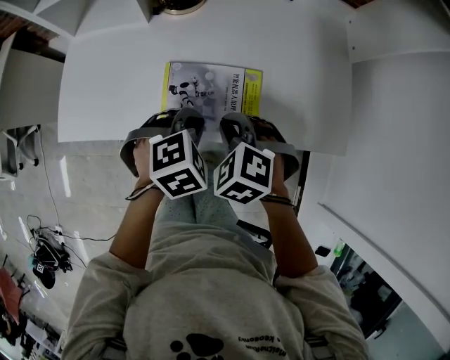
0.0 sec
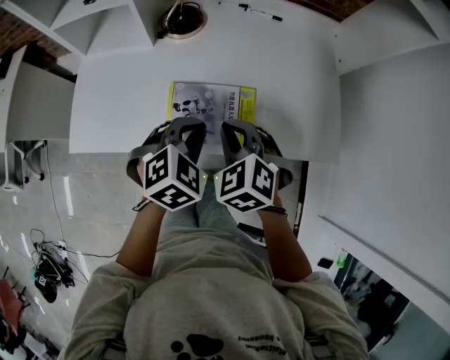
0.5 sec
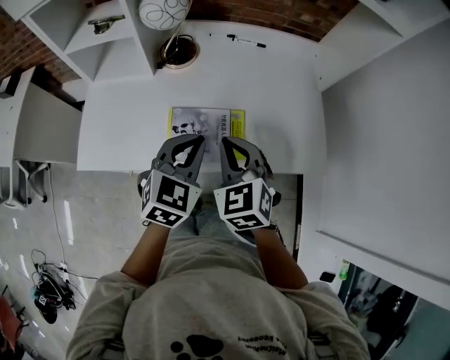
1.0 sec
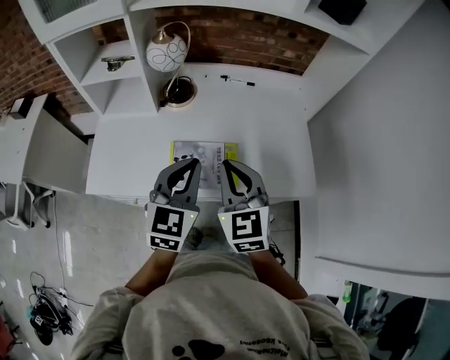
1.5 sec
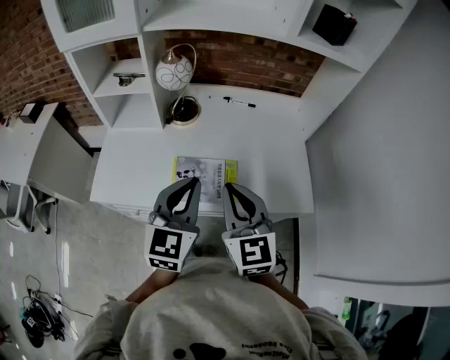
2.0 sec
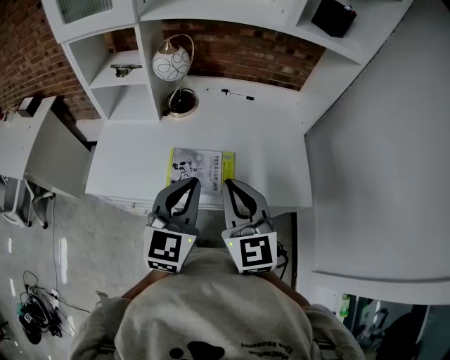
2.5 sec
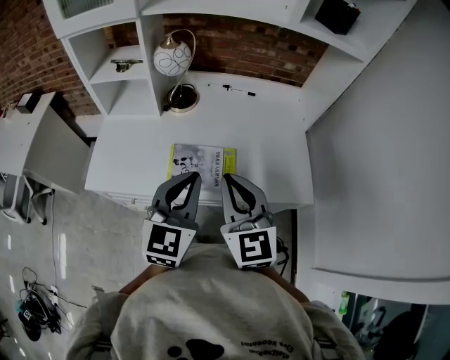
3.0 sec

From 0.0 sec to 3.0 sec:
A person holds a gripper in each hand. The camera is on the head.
From 0.0 sec to 1.5 sec: The two grippers go approximately 20 cm upward. The left gripper tilts its fingers some 50 degrees upward, while the right gripper tilts its fingers approximately 40 degrees upward.
From 1.5 sec to 3.0 sec: Both grippers travel together backward, approximately 5 cm.

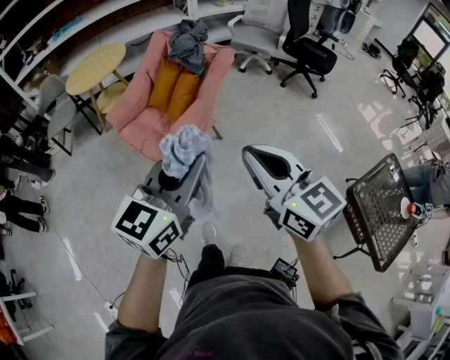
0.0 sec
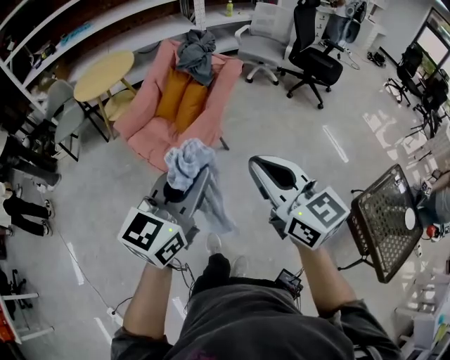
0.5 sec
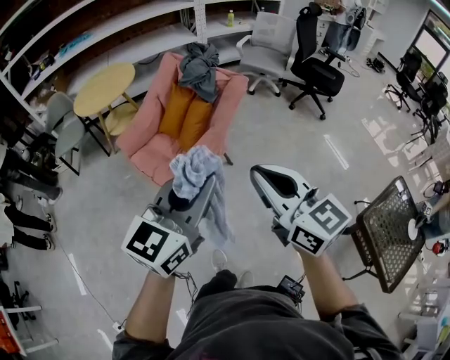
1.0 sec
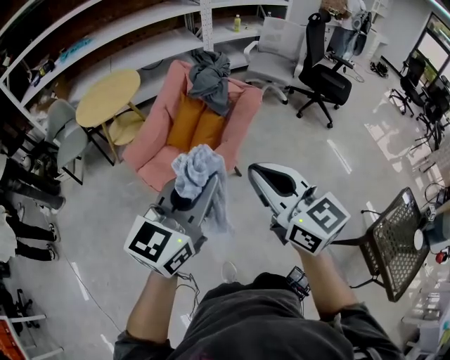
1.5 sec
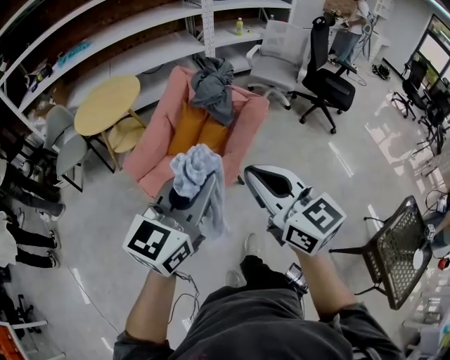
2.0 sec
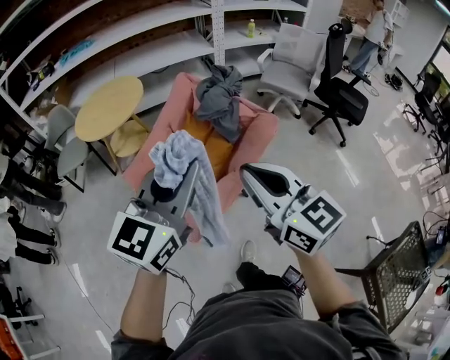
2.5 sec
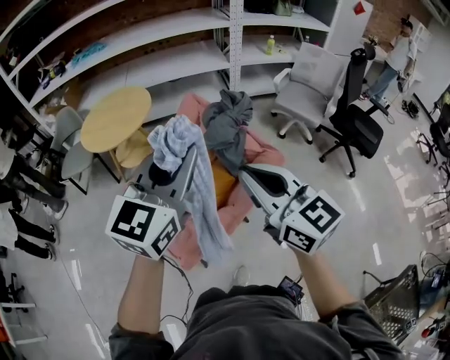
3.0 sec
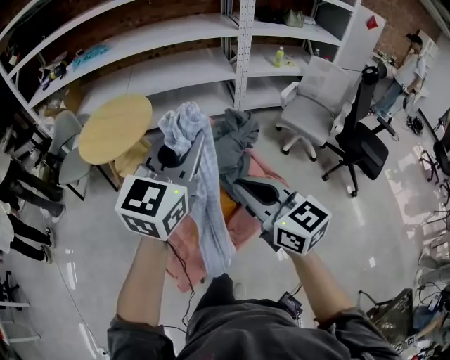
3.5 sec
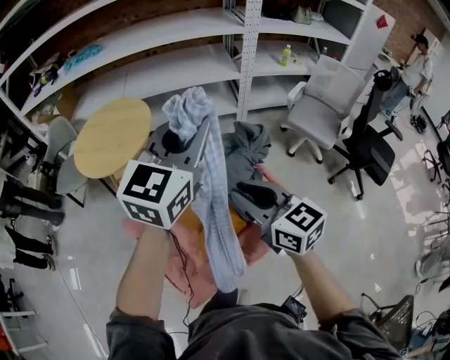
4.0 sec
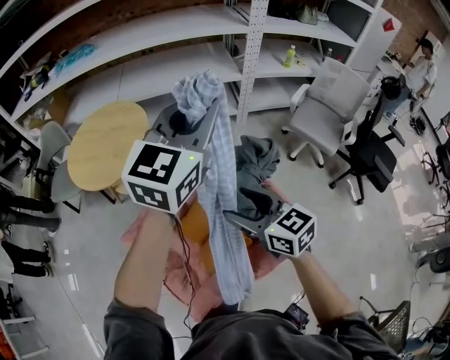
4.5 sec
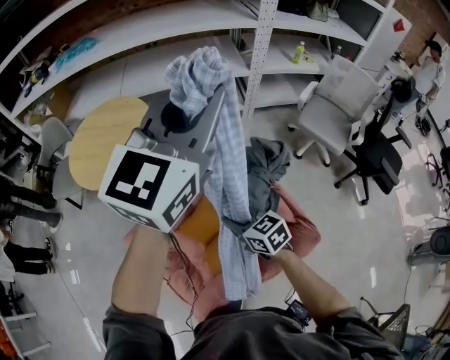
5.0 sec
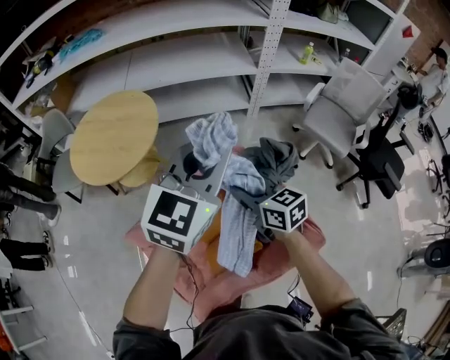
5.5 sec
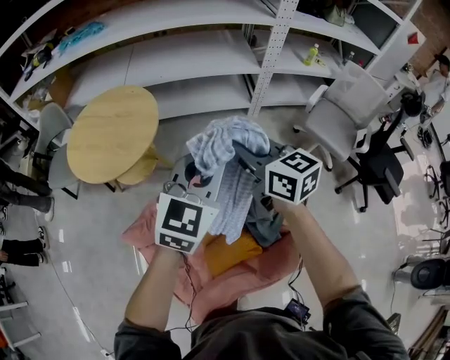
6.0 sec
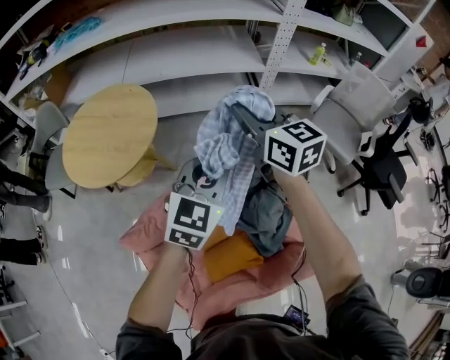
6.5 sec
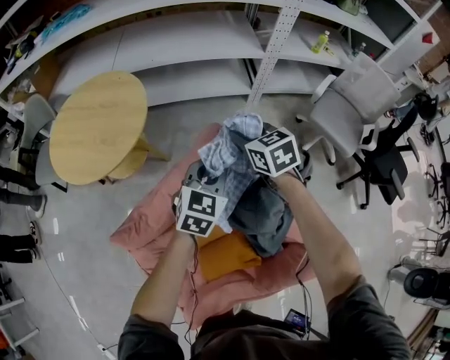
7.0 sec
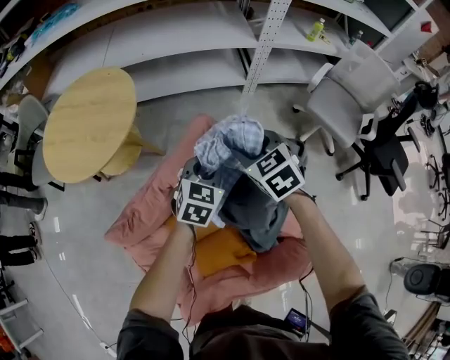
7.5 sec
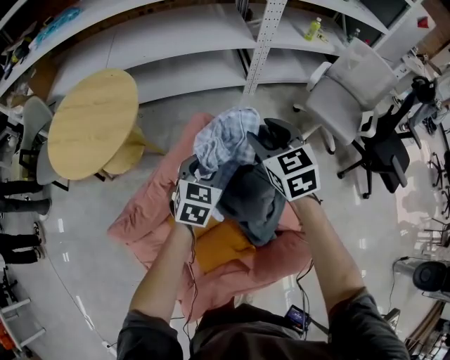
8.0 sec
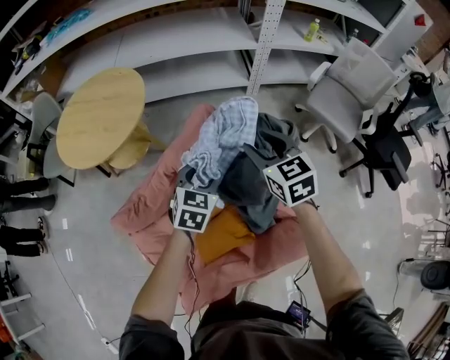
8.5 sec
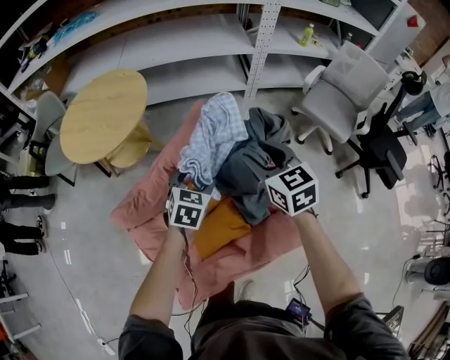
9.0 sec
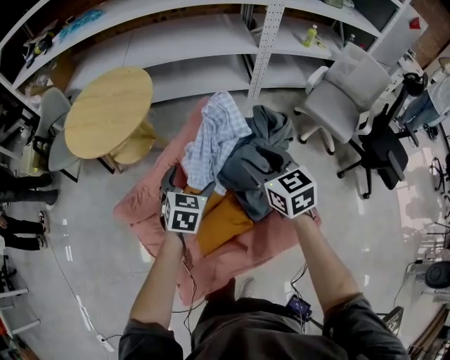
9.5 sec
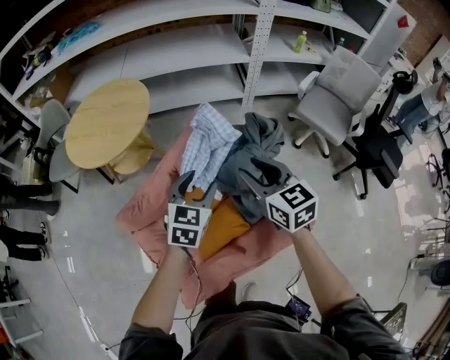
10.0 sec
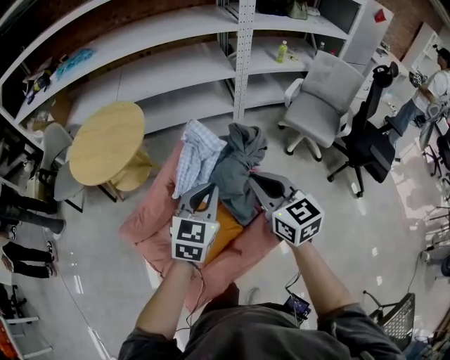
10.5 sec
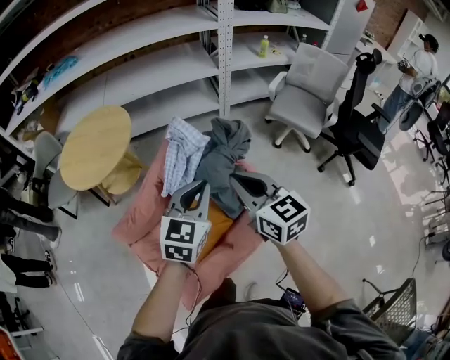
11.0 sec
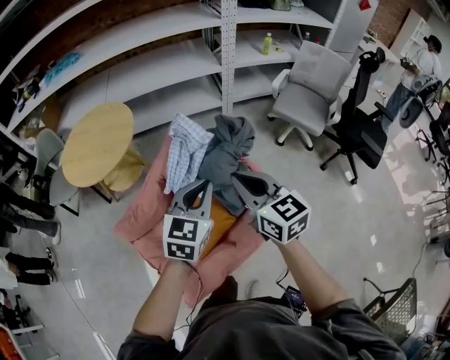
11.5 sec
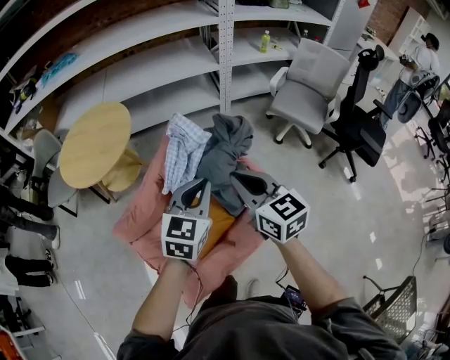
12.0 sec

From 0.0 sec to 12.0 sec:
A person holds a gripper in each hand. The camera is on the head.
From 0.0 sec to 2.0 sec: The grippers both shift forward and to the left by approximately 25 cm.
From 2.0 sec to 4.0 sec: Both grippers are carried forward, about 50 cm. The left gripper changes its angle by roughly 20 degrees; the right gripper changes its angle by about 20 degrees.
From 4.0 sec to 6.0 sec: The left gripper is displaced forward and downward by some 20 cm. The right gripper travels forward by about 30 cm, and opens, then closes once more.
From 6.0 sec to 8.0 sec: The left gripper goes some 25 cm downward, and changes its angle by roughly 20 degrees; the right gripper shifts some 20 cm downward, to the right and forward, changes its angle by about 30 degrees, and opens.
From 8.0 sec to 10.0 sec: The right gripper shifts about 20 cm backward; the left gripper travels backward and upward by some 20 cm, and opens, then closes once more.
From 10.0 sec to 12.0 sec: The right gripper heads backward and upward, covering roughly 10 cm, and closes up. The left gripper heads upward, to the right and backward, covering approximately 15 cm, and closes up.

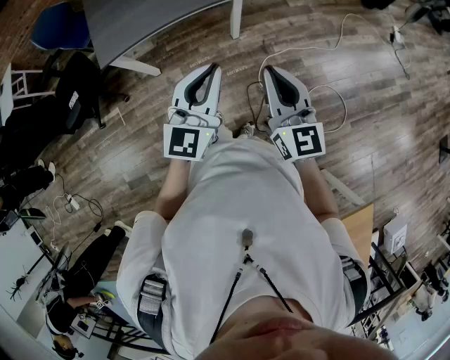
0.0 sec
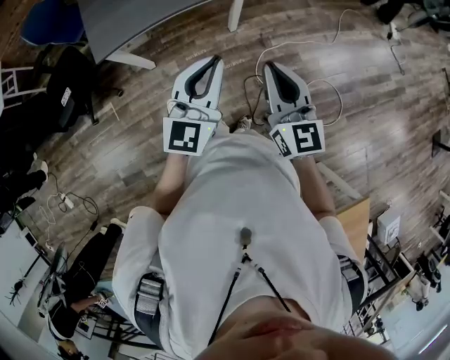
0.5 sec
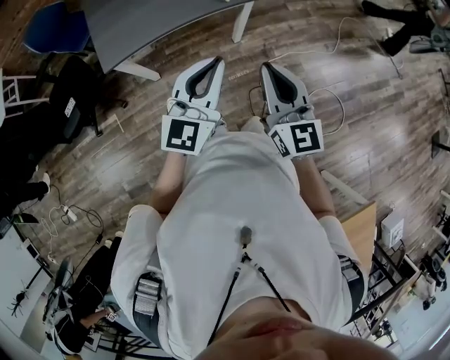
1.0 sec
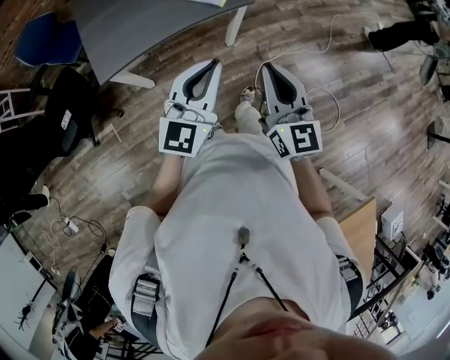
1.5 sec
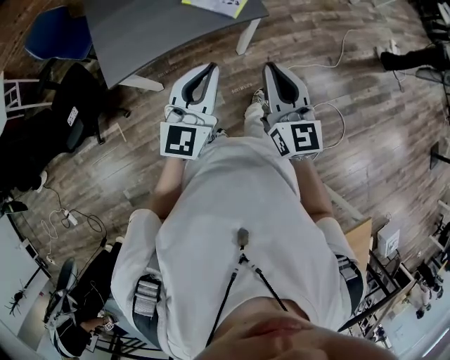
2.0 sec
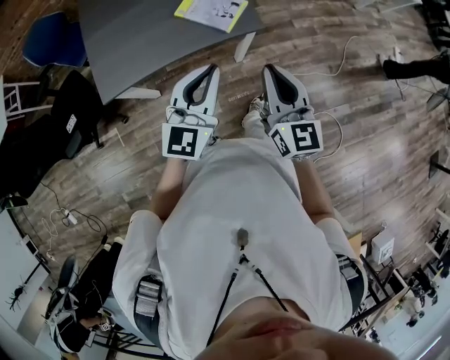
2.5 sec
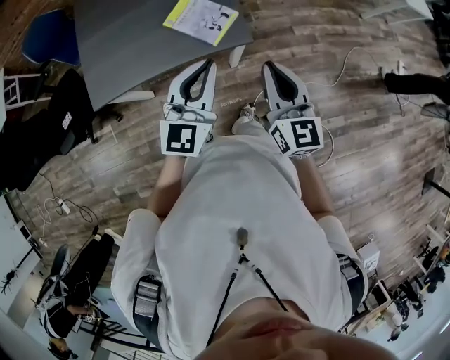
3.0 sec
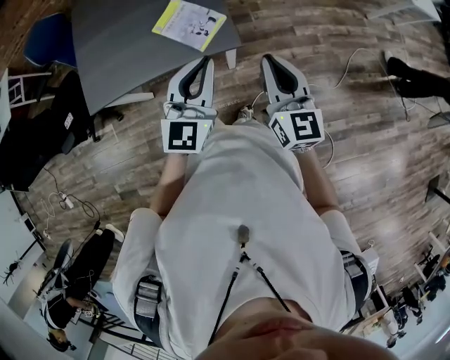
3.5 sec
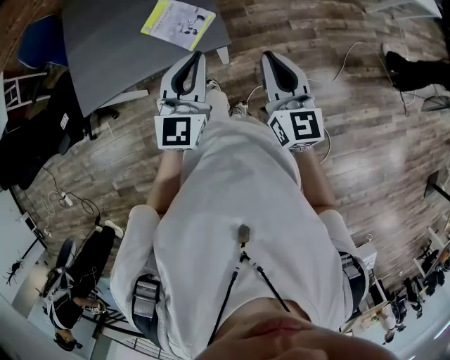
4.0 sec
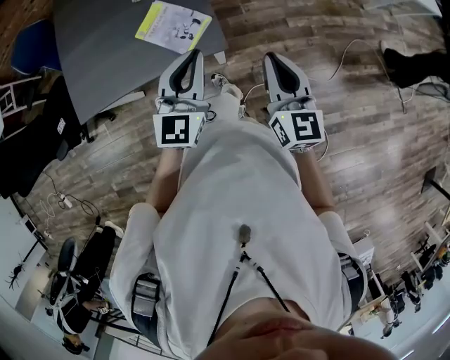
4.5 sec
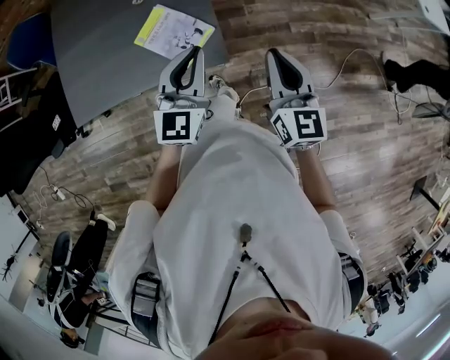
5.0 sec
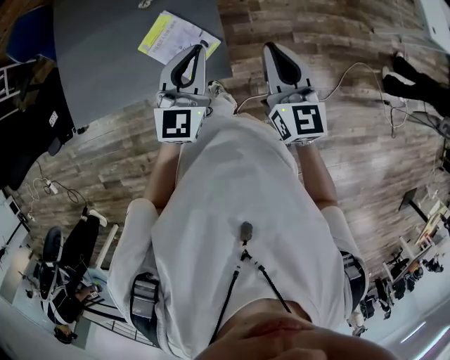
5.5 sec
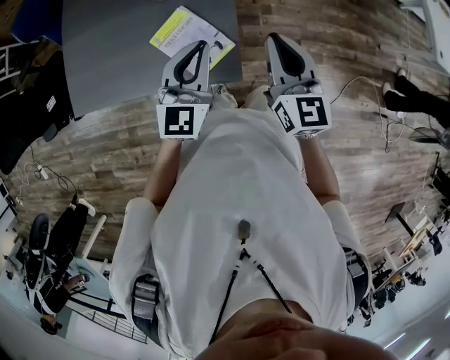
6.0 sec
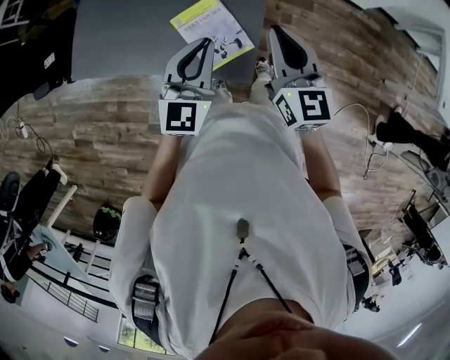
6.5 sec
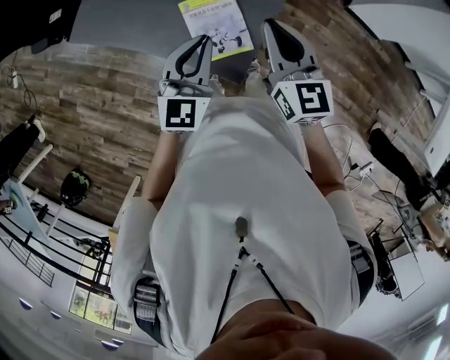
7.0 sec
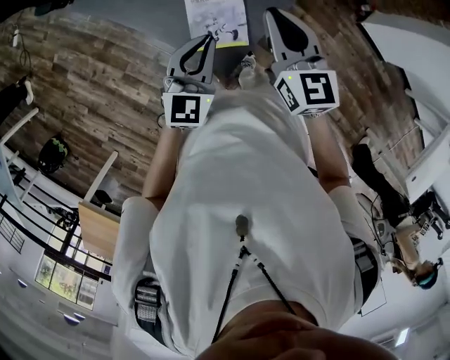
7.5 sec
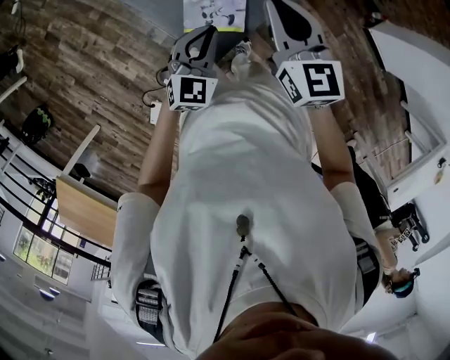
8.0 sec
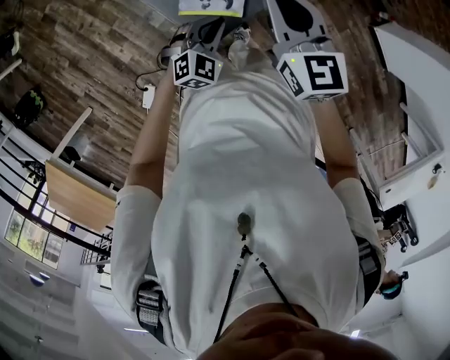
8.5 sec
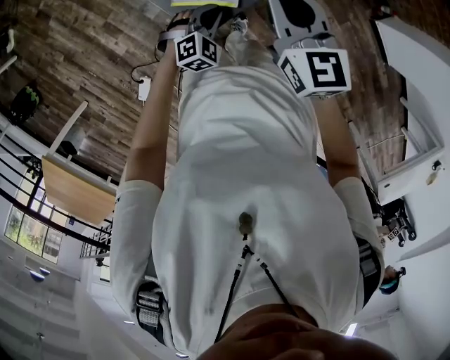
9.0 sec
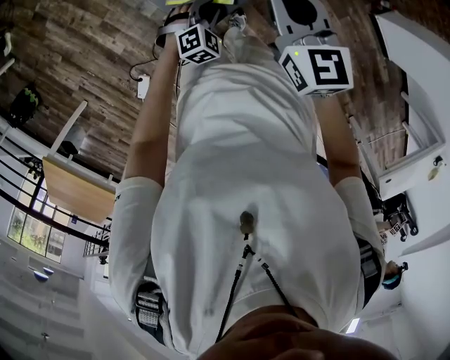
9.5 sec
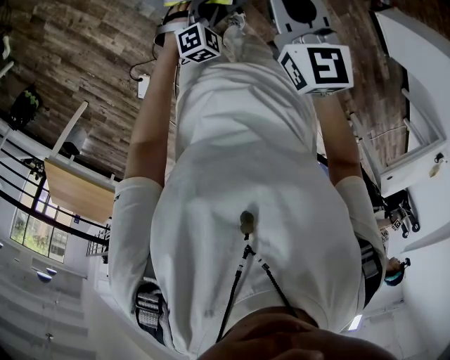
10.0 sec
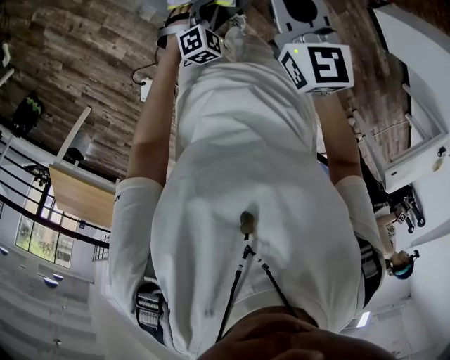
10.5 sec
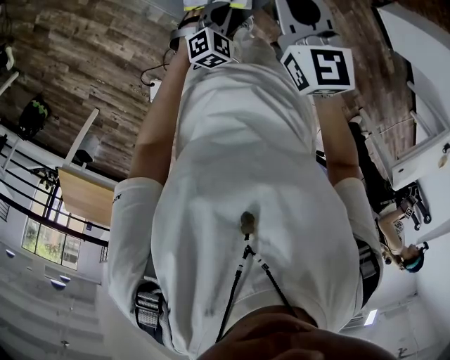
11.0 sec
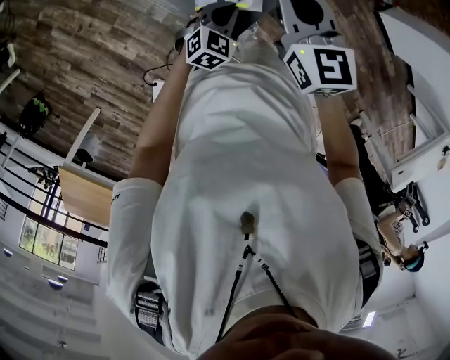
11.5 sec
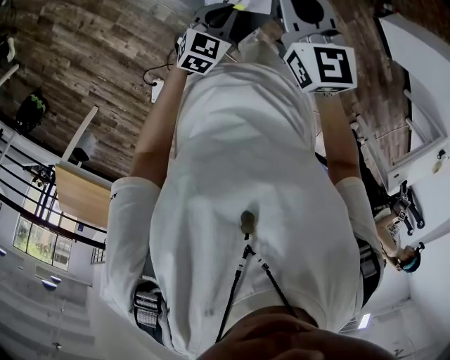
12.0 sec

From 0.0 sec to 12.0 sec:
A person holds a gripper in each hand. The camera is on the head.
From 0.0 sec to 2.0 sec: Both grippers move forward and to the left, approximately 20 cm.
From 2.0 sec to 4.0 sec: Both grippers move forward and to the right, approximately 40 cm.
From 4.0 sec to 6.0 sec: Both grippers travel together forward, approximately 25 cm.
From 6.0 sec to 8.0 sec: The left gripper shifts approximately 20 cm downward, and turns by about 50 degrees. The right gripper changes place by approximately 15 cm, and changes its angle by approximately 50 degrees.
From 8.0 sec to 10.0 sec: The left gripper travels downward by approximately 20 cm, changes its angle by approximately 40 degrees, and opens, while the right gripper moves downward, about 5 cm.
From 10.0 sec to 12.0 sec: The right gripper heads to the left, covering roughly 10 cm; the left gripper shifts about 15 cm upward and to the left, swivels some 40 degrees, and closes its fingers.
